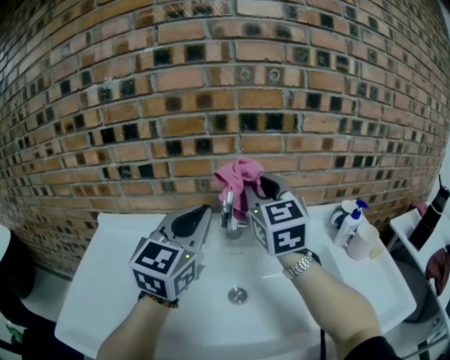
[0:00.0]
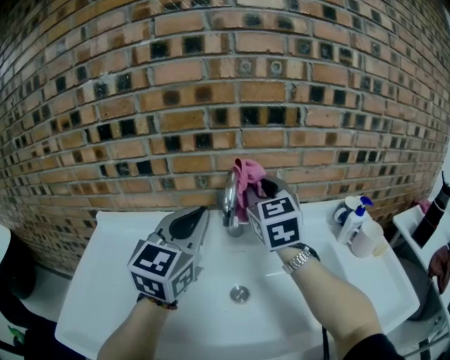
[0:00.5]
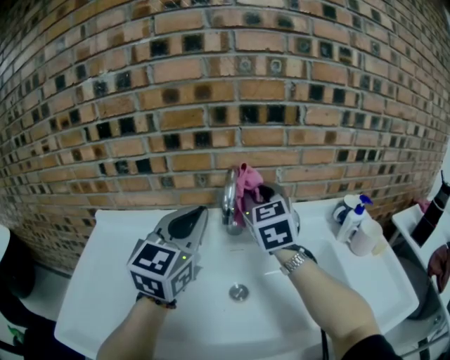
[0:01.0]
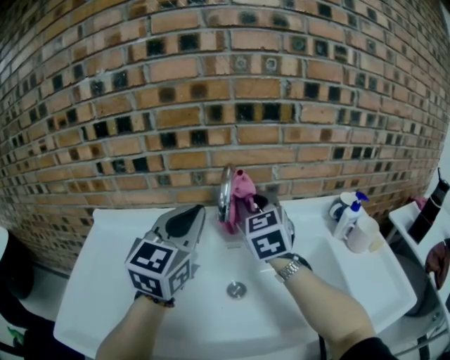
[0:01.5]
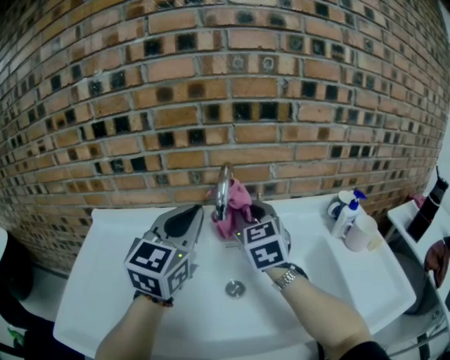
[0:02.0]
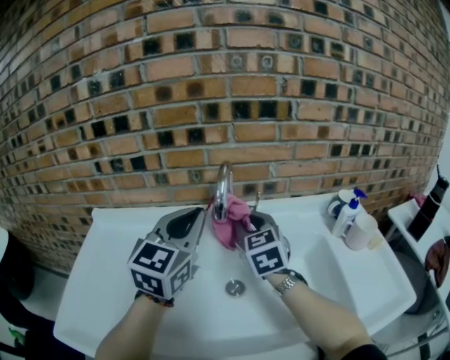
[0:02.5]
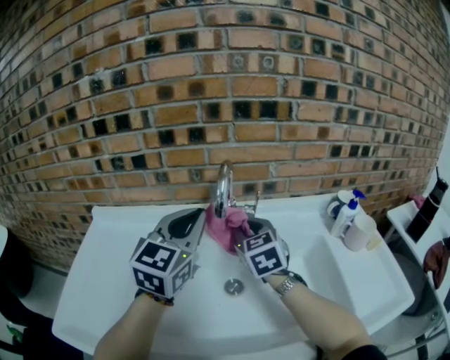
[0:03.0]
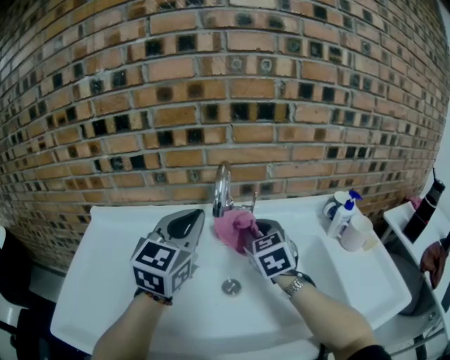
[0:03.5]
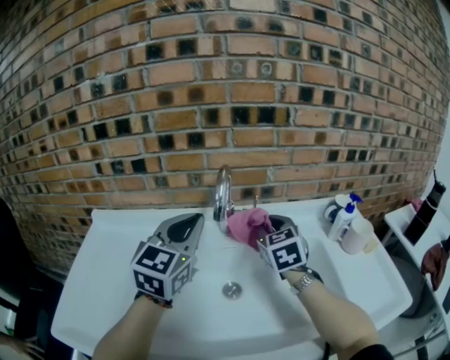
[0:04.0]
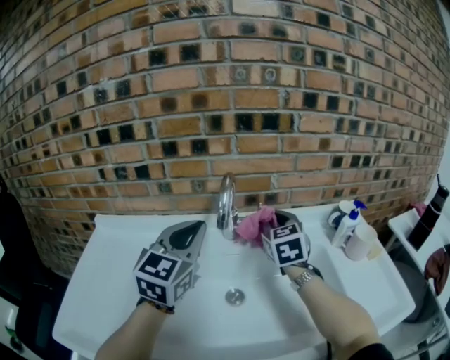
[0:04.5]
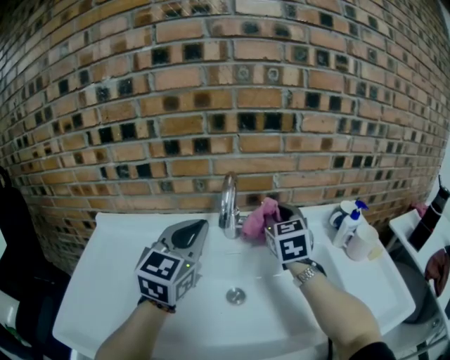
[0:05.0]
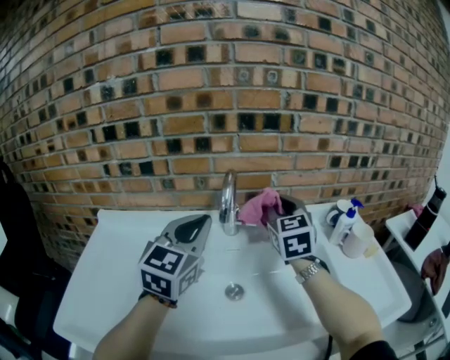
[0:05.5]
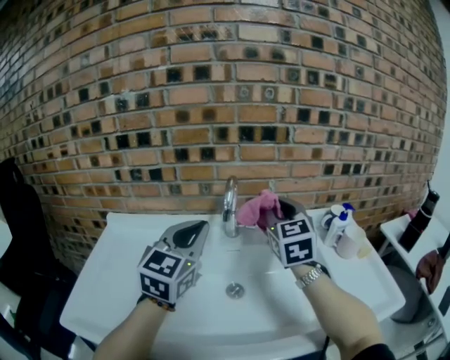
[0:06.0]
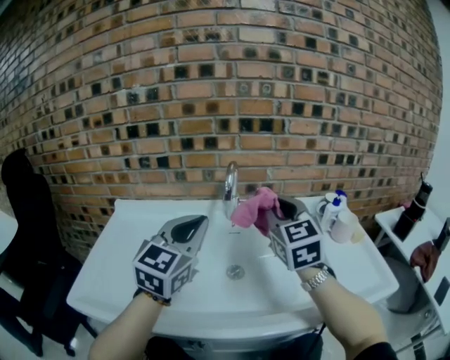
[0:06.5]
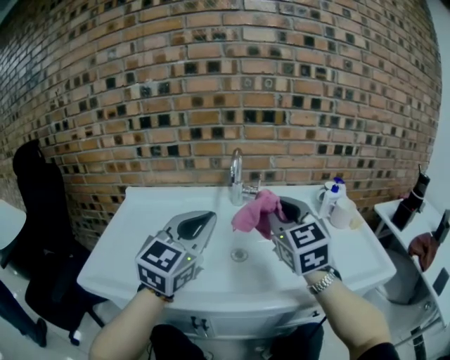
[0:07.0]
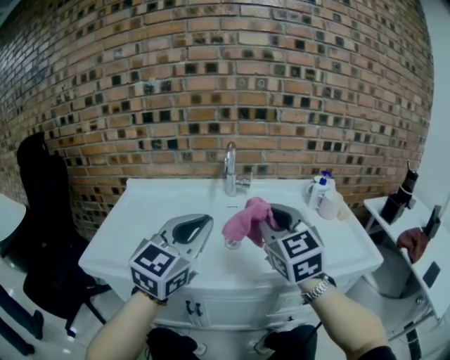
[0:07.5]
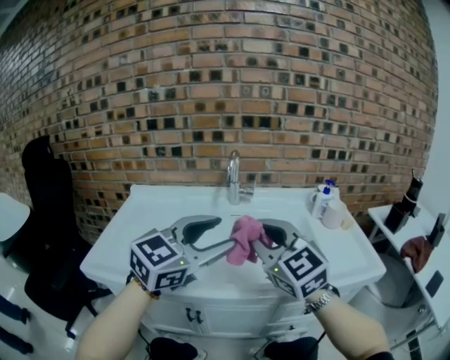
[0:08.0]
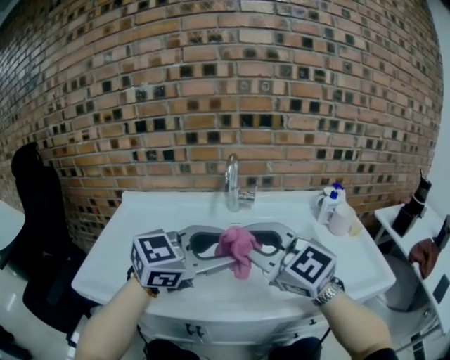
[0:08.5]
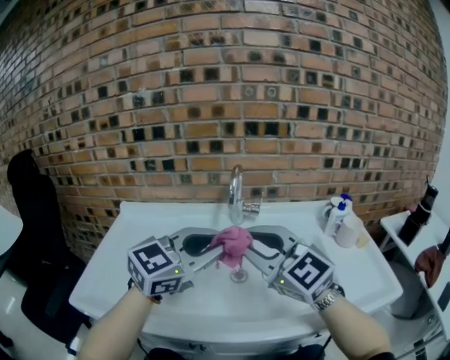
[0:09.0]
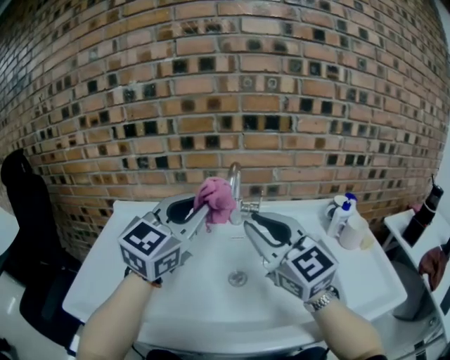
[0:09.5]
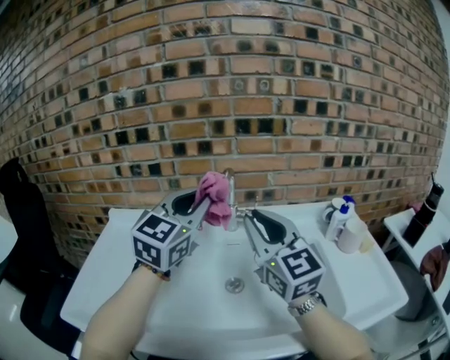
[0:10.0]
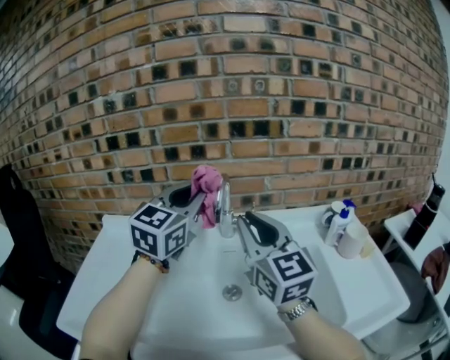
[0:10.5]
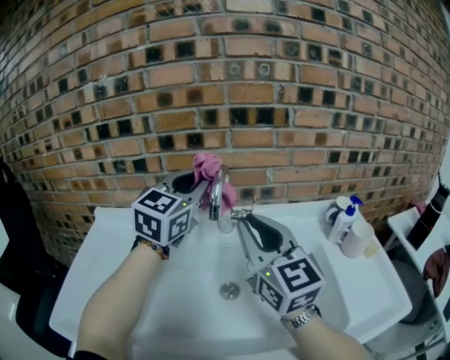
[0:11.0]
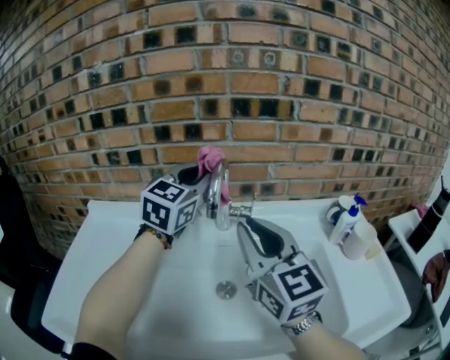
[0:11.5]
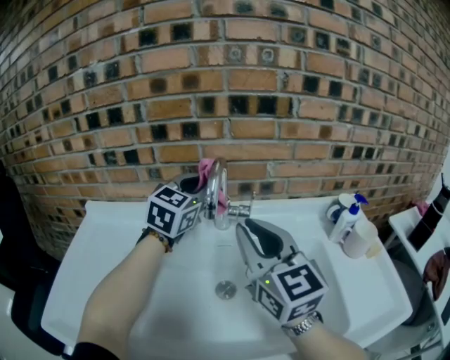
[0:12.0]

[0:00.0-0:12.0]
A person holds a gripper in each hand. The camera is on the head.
0:00.0 to 0:02.0: The right gripper moves downward, roughly 10 cm.
0:02.0 to 0:04.0: The right gripper shifts about 5 cm to the right.
0:04.0 to 0:06.0: The right gripper goes roughly 15 cm upward; the left gripper moves backward, roughly 5 cm.
0:06.0 to 0:08.0: Both grippers move backward, about 25 cm. The left gripper swivels some 20 degrees, and opens. The right gripper swivels some 30 degrees.
0:08.0 to 0:10.0: The grippers both shift forward by some 20 cm. The left gripper changes its angle by roughly 20 degrees, and closes.
0:10.0 to 0:12.0: The left gripper goes some 20 cm forward and downward; the right gripper moves some 5 cm.

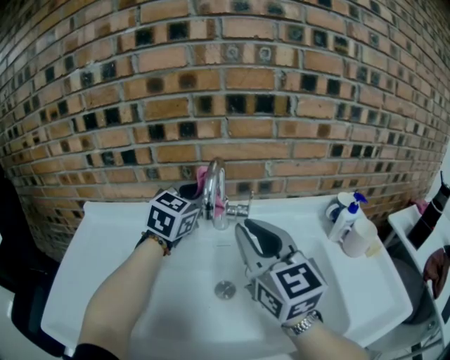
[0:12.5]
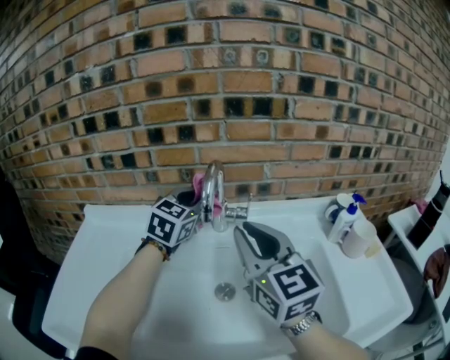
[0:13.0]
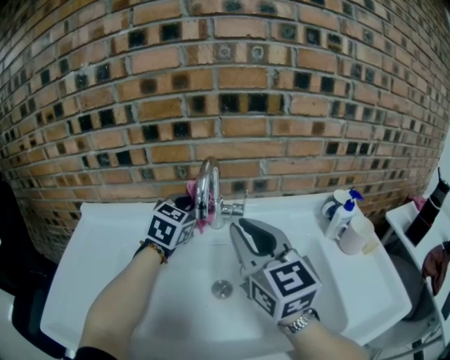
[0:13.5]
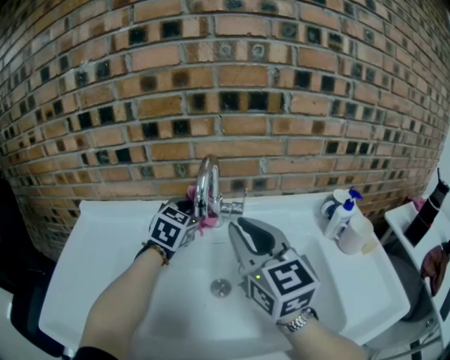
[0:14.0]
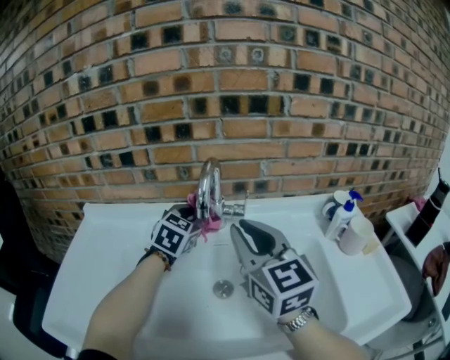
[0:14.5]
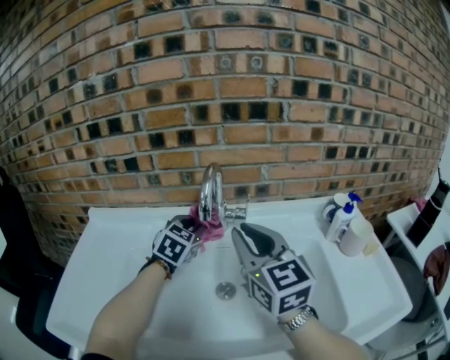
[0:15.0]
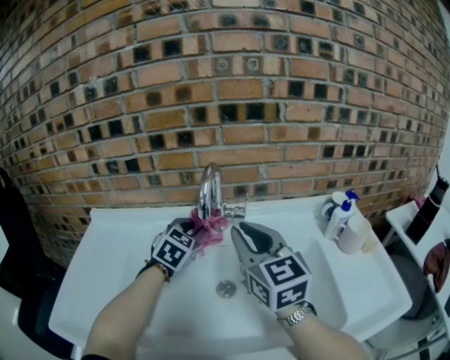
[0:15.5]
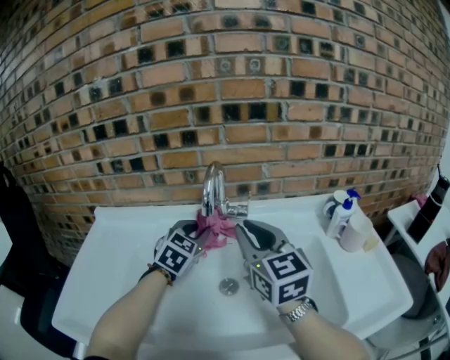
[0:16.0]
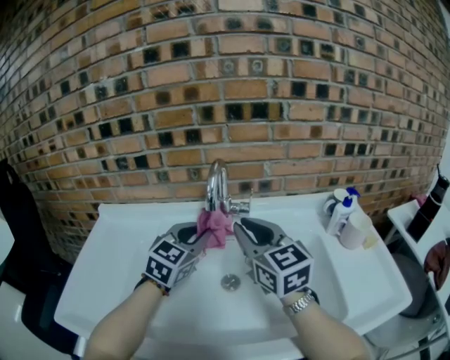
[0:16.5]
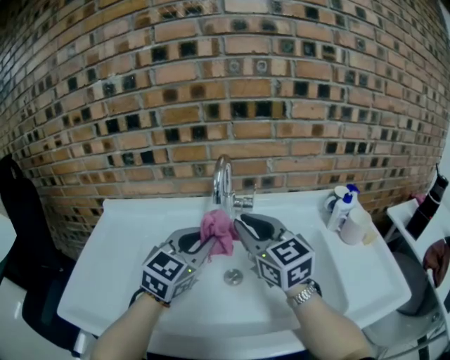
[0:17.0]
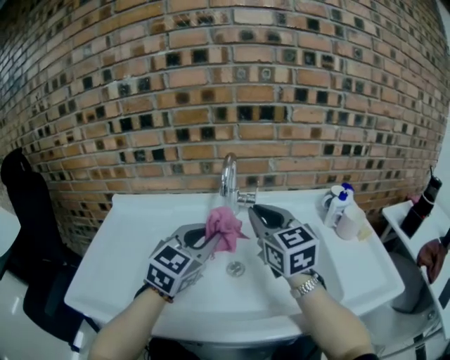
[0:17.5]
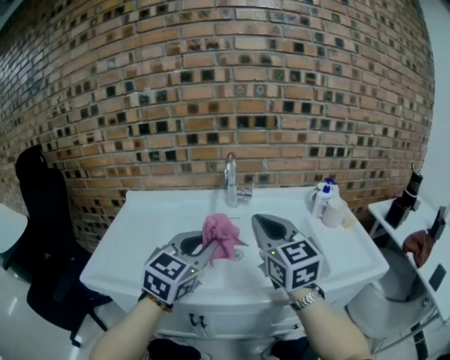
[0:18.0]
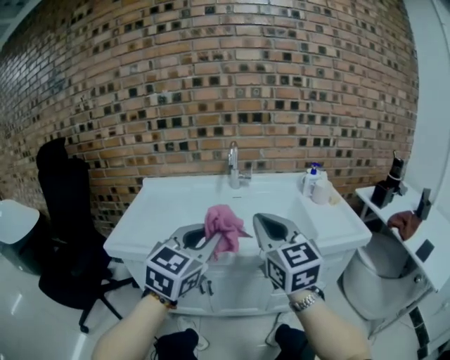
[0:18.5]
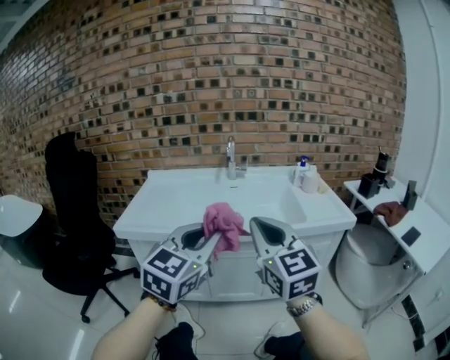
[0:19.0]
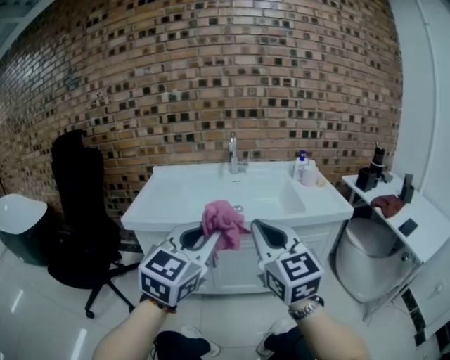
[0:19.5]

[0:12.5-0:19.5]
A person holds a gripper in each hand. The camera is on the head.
0:12.5 to 0:14.5: The left gripper is displaced downward by approximately 10 cm.
0:14.5 to 0:16.0: The left gripper moves backward, approximately 5 cm.
0:16.0 to 0:17.5: The left gripper is displaced backward and upward by some 20 cm.
0:17.5 to 0:19.5: The two grippers travel together, backward, some 50 cm.

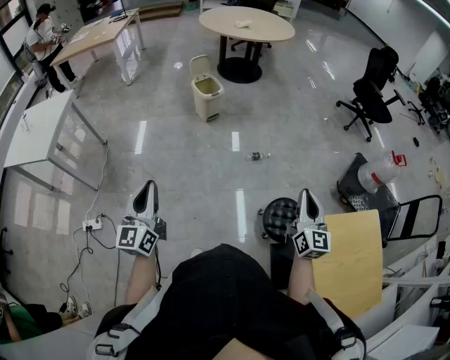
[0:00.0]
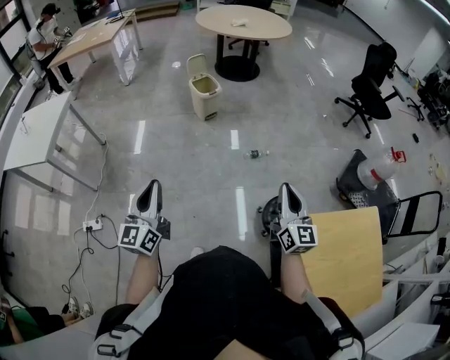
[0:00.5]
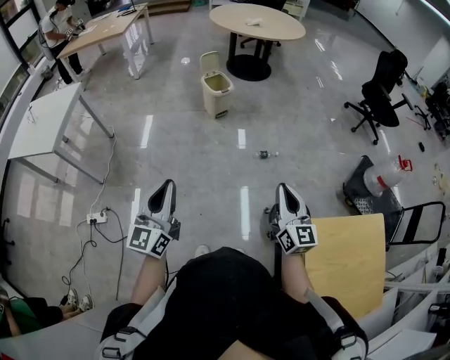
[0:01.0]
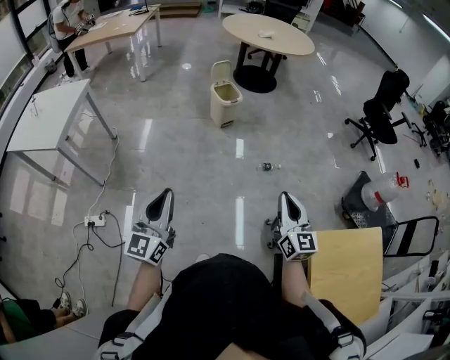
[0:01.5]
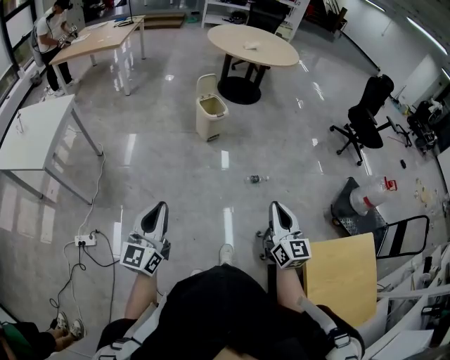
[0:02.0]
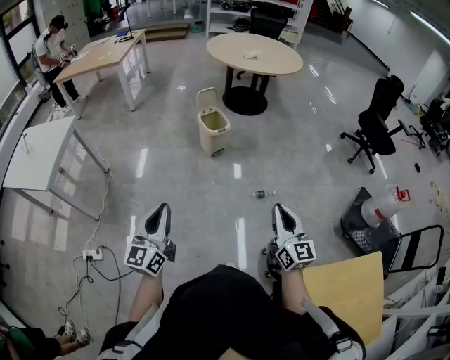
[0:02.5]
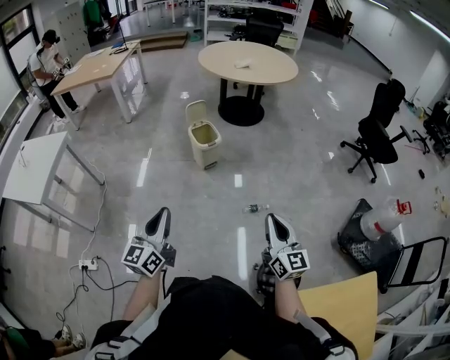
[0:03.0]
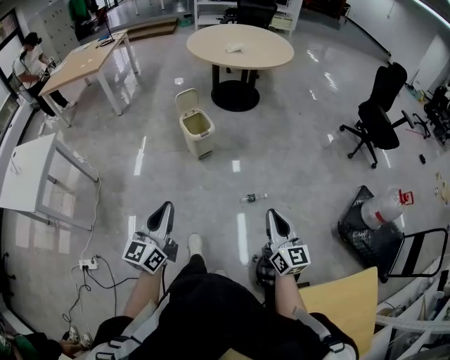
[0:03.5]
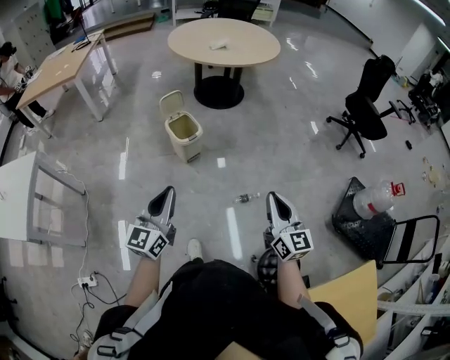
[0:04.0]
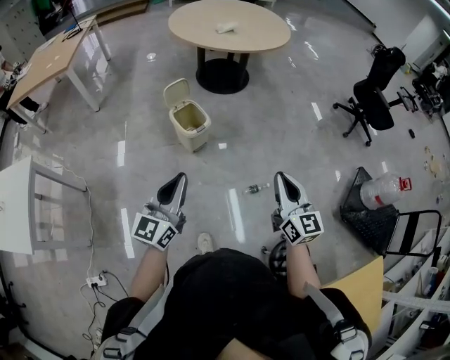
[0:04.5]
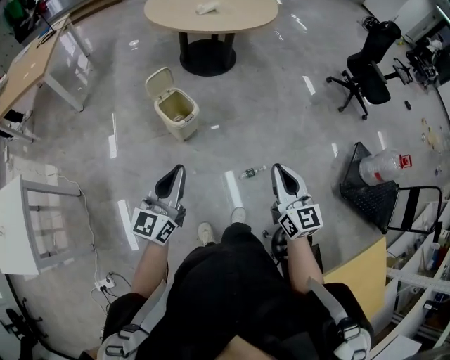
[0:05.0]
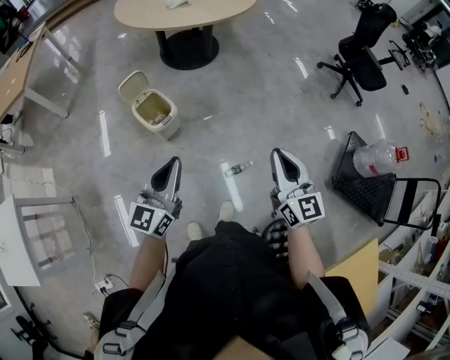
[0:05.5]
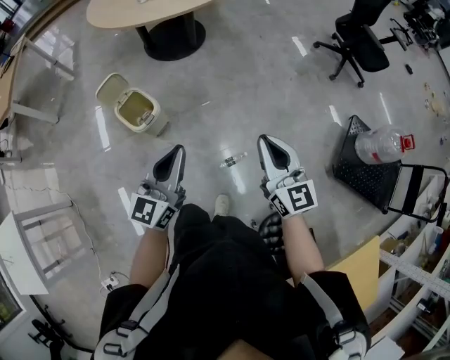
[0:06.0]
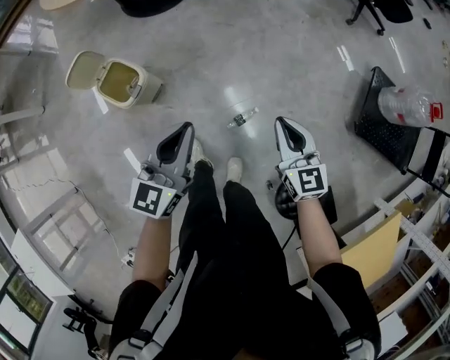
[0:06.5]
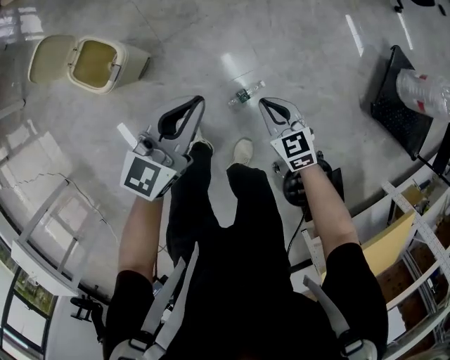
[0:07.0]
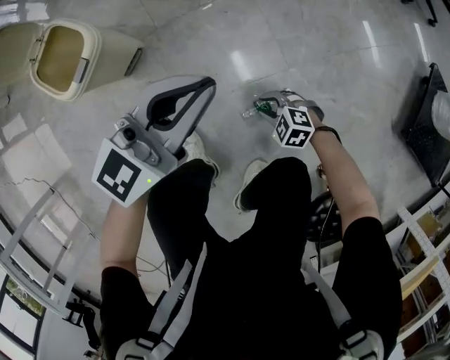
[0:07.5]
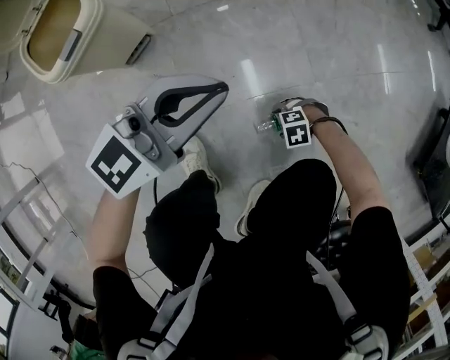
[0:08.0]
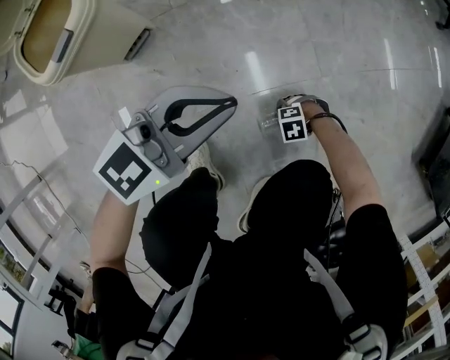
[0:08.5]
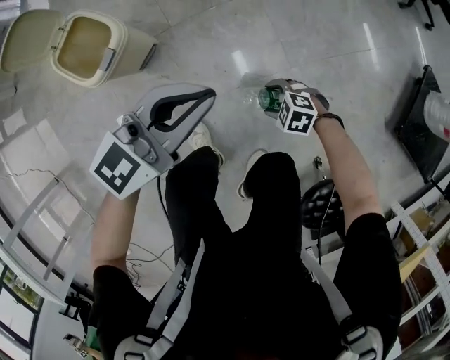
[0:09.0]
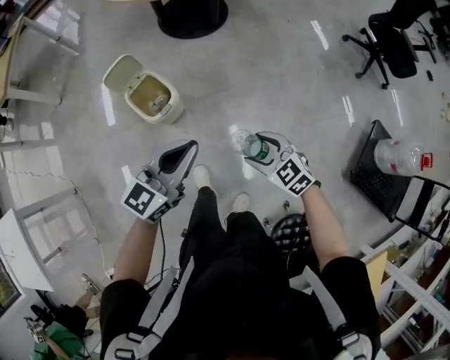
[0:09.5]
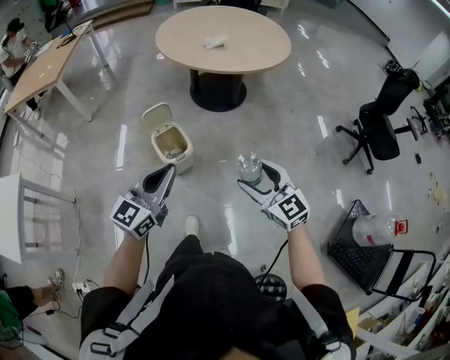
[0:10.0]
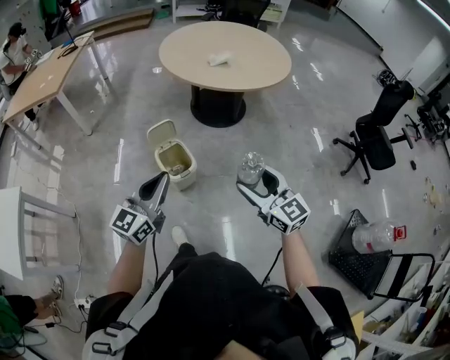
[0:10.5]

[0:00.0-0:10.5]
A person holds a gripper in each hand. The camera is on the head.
0:00.0 to 0:02.0: The right gripper heads to the left, covering about 20 cm. Meanwhile the left gripper heads to the left, covering some 5 cm.
0:02.0 to 0:04.0: The grippers both shift forward and to the right by some 35 cm.
0:04.0 to 0:06.5: The left gripper moves forward, to the right and downward, approximately 40 cm, and rotates approximately 30 degrees; the right gripper goes roughly 35 cm forward and downward, and rotates about 20 degrees.
0:06.5 to 0:08.5: The right gripper heads downward, covering about 70 cm, angles its fingers downward, by about 40 degrees, and opens; the left gripper is displaced downward by roughly 40 cm, and turns by roughly 30 degrees.
0:08.5 to 0:10.5: The right gripper is displaced upward by approximately 1 m, and tips its fingers upward by some 60 degrees; the left gripper goes some 60 cm upward, and turns by about 50 degrees.
